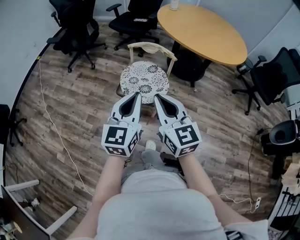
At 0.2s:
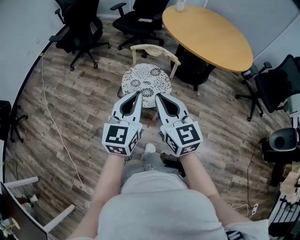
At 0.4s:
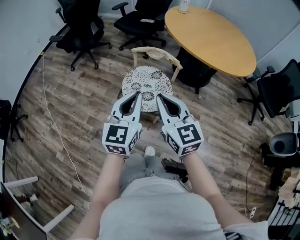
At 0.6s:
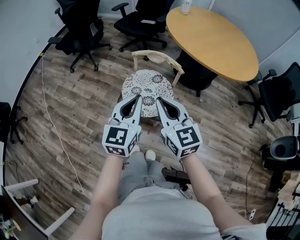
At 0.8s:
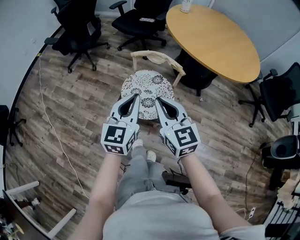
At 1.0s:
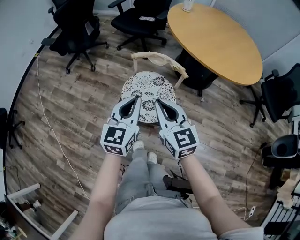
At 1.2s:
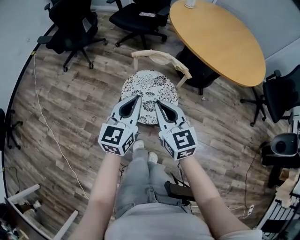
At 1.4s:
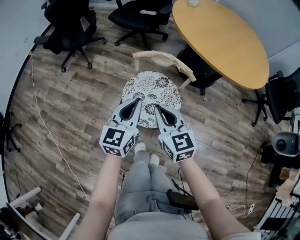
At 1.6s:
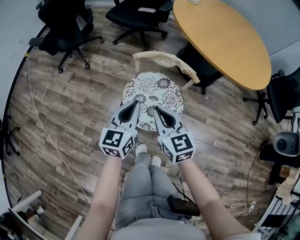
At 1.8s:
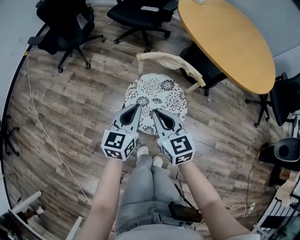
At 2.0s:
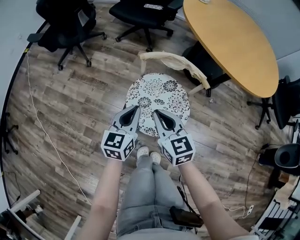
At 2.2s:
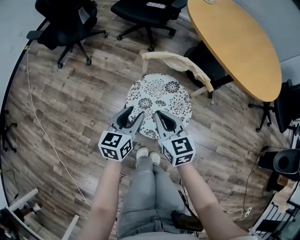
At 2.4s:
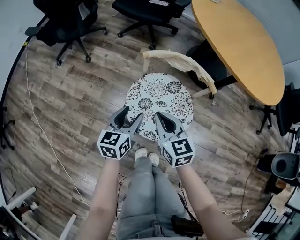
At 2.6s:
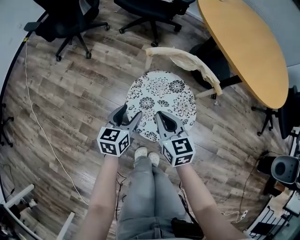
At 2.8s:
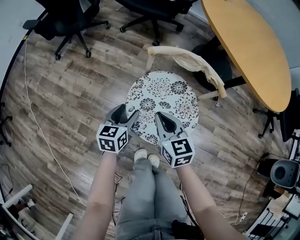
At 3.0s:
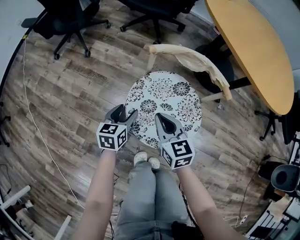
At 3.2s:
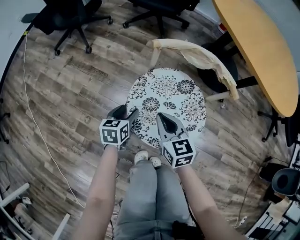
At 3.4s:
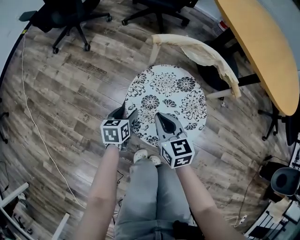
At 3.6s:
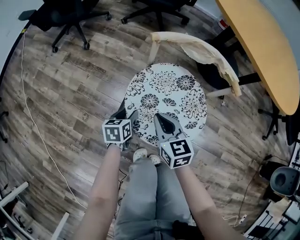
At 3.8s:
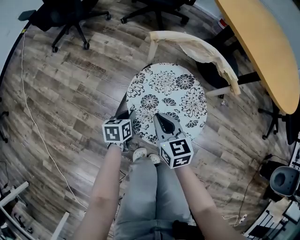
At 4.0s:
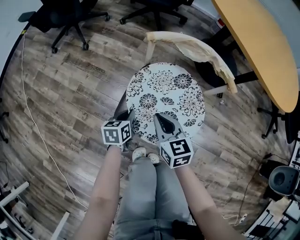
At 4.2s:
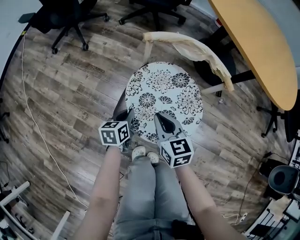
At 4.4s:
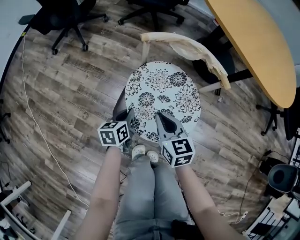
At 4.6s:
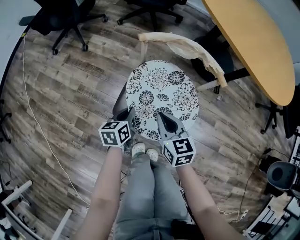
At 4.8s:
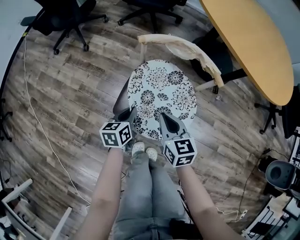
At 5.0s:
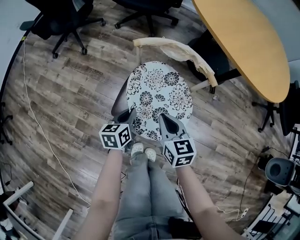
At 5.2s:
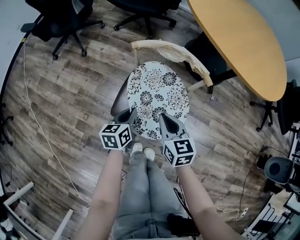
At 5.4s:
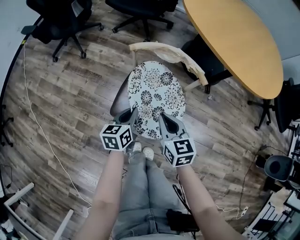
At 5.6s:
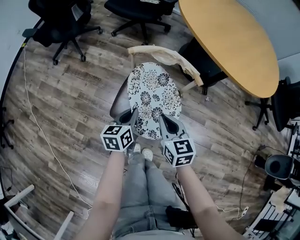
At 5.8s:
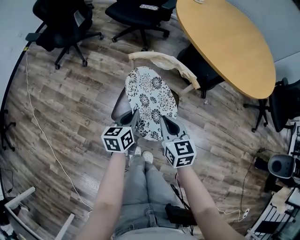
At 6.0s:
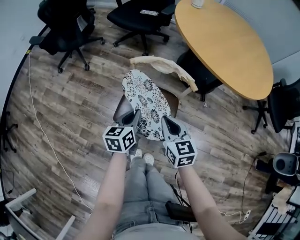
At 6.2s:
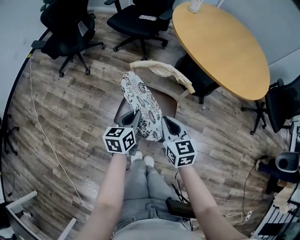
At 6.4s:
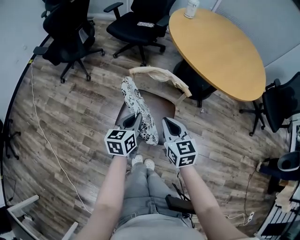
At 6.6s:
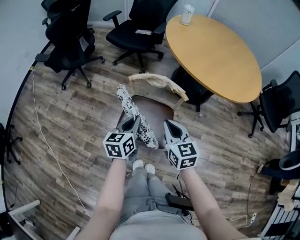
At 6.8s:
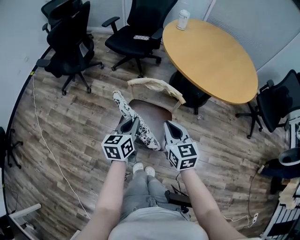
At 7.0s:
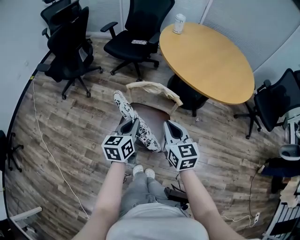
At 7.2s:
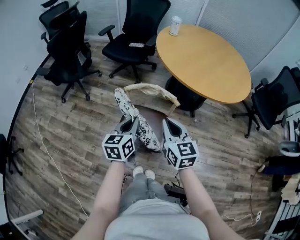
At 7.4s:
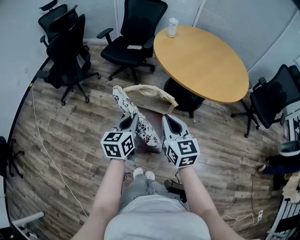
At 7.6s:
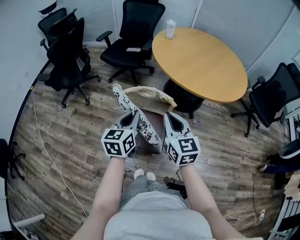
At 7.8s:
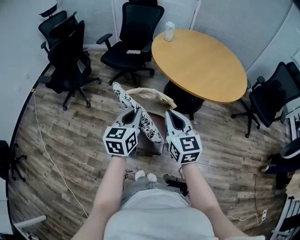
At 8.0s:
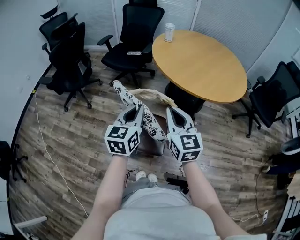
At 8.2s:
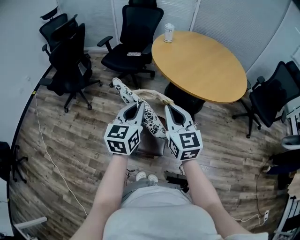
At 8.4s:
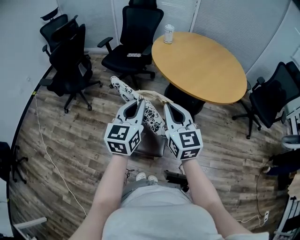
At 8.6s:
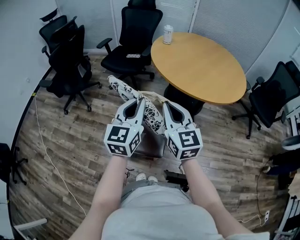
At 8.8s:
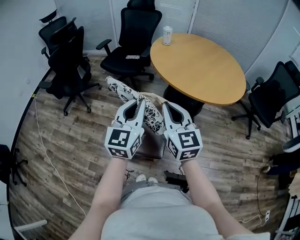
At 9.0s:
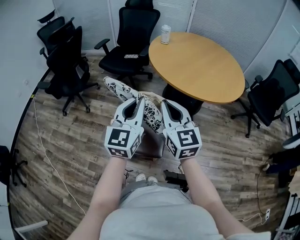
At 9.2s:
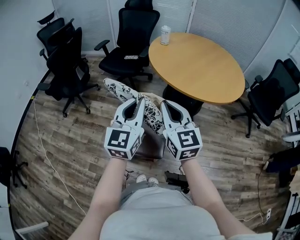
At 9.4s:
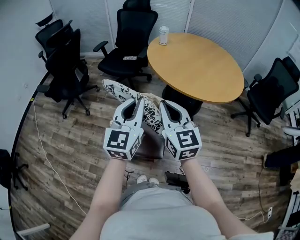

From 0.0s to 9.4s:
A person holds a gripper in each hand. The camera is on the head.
From 0.0s to 1.6s: The grippers both shift forward and downward by roughly 30 cm.
From 1.6s to 3.2s: Both grippers move downward, about 30 cm. The left gripper changes its angle by roughly 30 degrees, and opens.
From 3.2s to 4.8s: The left gripper moves upward and to the right, some 10 cm, and closes its fingers; the right gripper shifts about 5 cm to the right.
From 4.8s to 6.2s: The two grippers go roughly 20 cm upward.
From 6.2s to 7.8s: Both grippers move upward, approximately 20 cm.
From 7.8s to 9.4s: The right gripper shifts some 5 cm upward. Meanwhile the left gripper is displaced upward by about 10 cm, and turns by roughly 20 degrees.

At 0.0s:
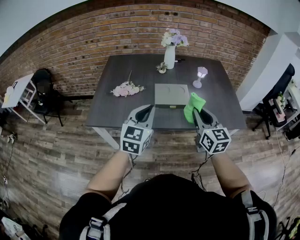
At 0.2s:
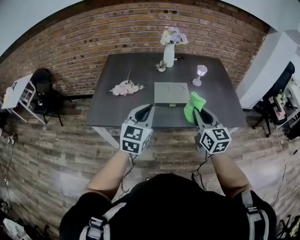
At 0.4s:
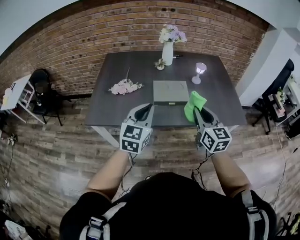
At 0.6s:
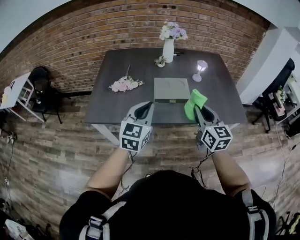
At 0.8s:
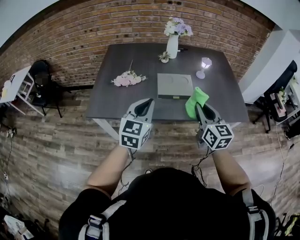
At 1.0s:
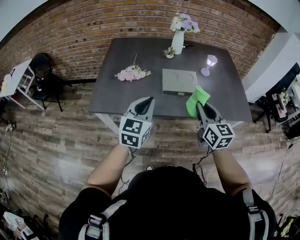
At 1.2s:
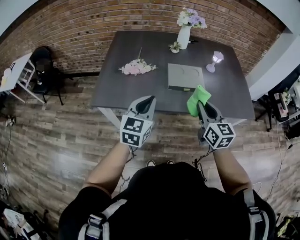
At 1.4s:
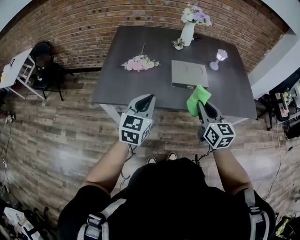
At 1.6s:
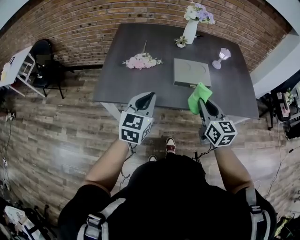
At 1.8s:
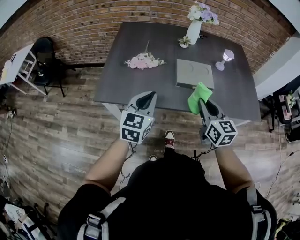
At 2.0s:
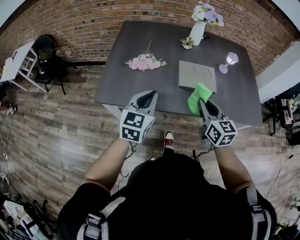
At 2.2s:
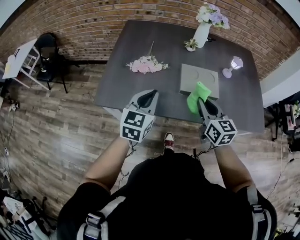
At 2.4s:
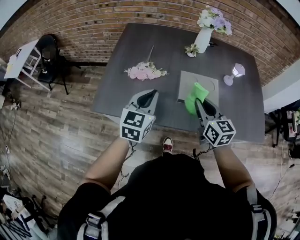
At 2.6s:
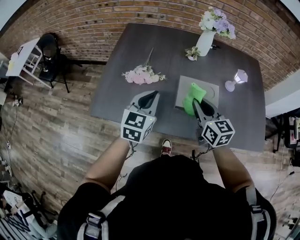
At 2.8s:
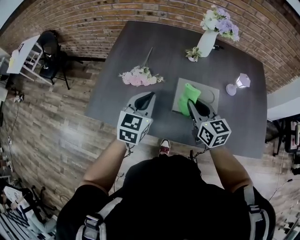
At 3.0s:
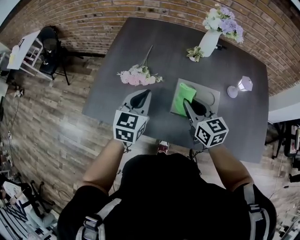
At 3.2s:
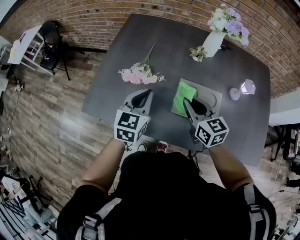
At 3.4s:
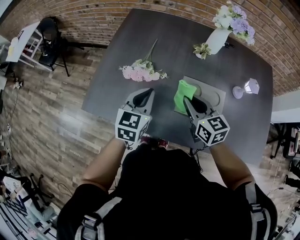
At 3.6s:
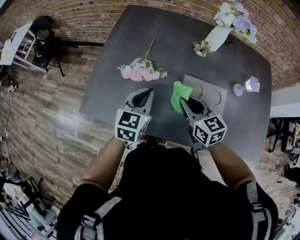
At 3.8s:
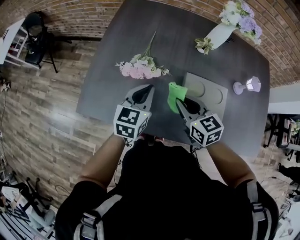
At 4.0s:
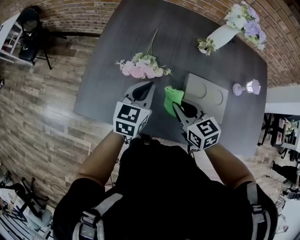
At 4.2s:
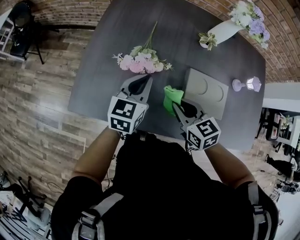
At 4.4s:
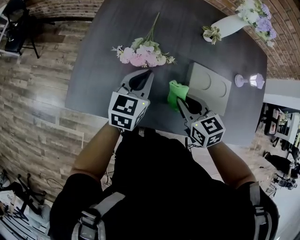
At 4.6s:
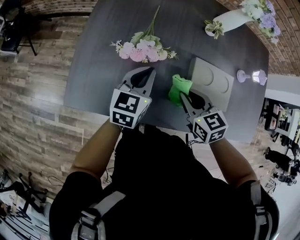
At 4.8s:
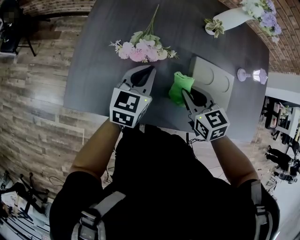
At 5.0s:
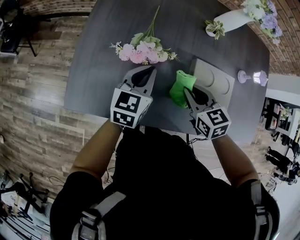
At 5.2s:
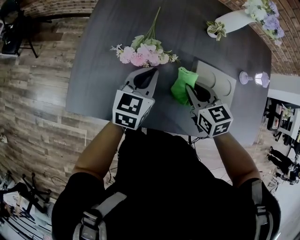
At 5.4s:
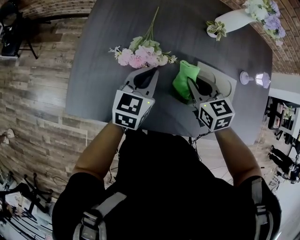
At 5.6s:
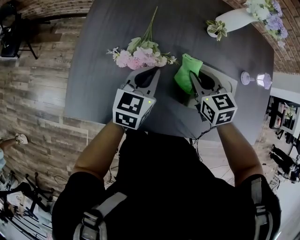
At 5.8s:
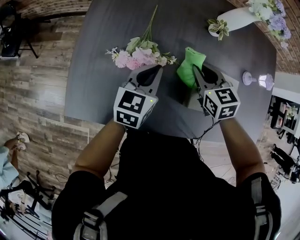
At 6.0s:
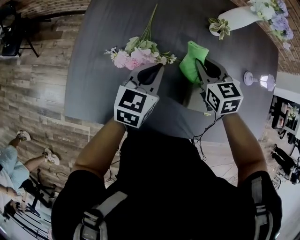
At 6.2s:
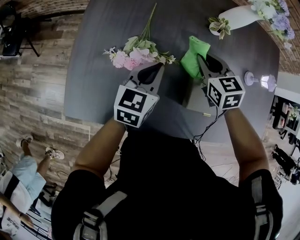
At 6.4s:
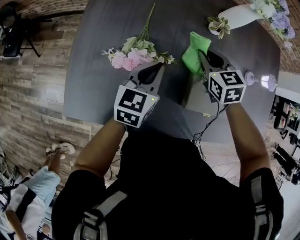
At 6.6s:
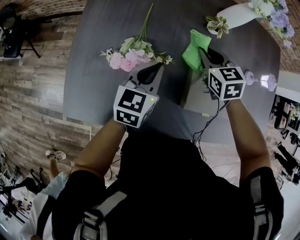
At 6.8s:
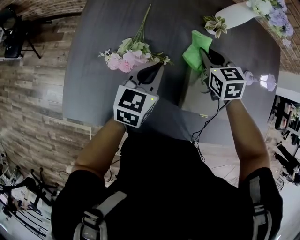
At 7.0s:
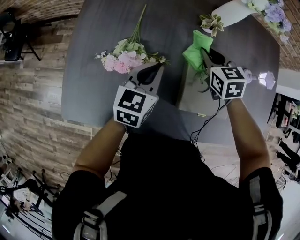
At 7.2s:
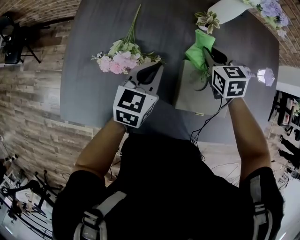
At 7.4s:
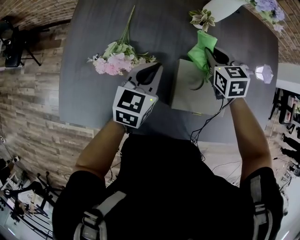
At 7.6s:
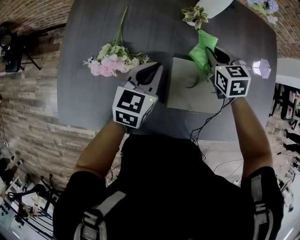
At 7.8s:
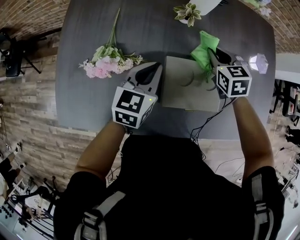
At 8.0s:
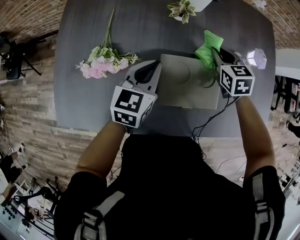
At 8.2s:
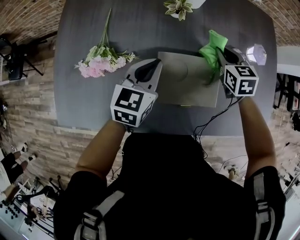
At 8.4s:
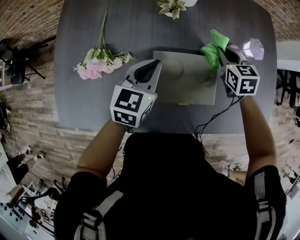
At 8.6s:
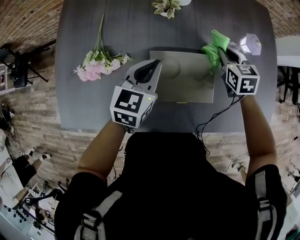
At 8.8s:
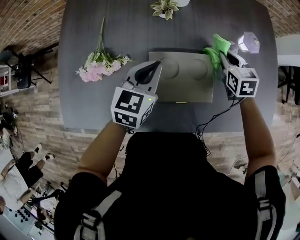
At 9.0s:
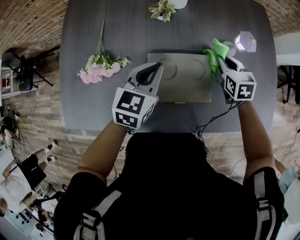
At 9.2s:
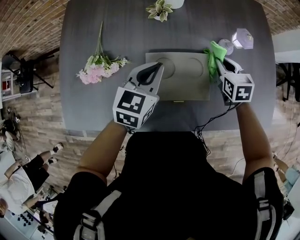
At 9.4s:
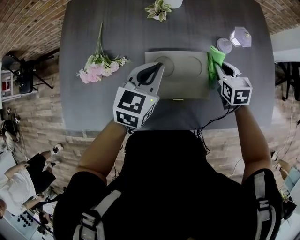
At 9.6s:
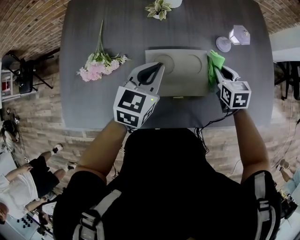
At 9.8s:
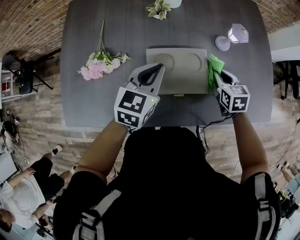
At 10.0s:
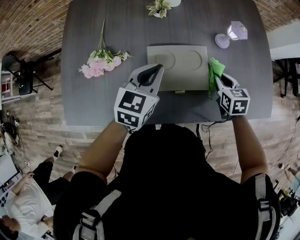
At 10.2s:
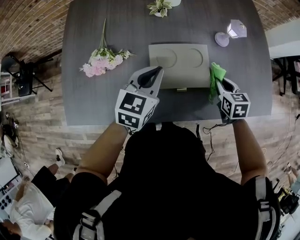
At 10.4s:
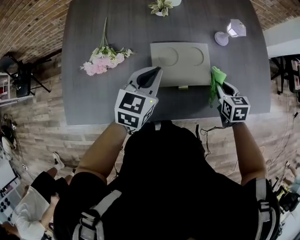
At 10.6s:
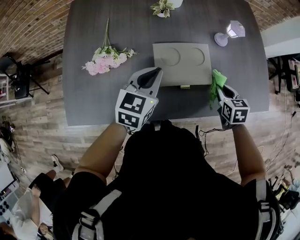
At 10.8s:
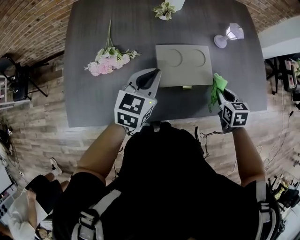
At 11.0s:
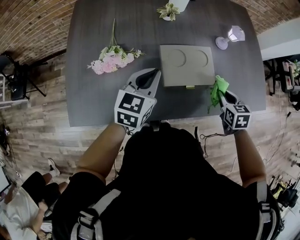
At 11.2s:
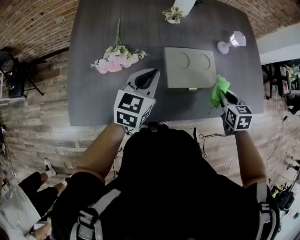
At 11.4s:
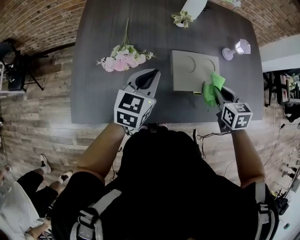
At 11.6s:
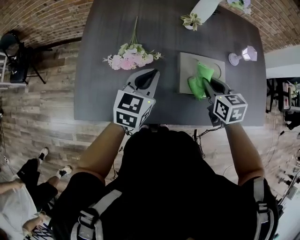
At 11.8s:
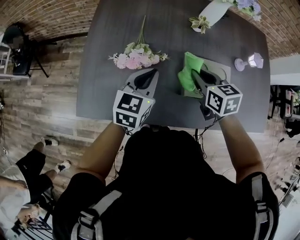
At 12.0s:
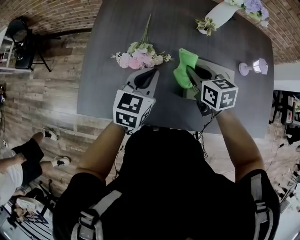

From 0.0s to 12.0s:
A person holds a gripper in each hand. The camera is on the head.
From 0.0s to 1.6s: The grippers both shift to the left and downward by approximately 10 cm.
From 1.6s to 3.0s: The grippers both shift forward by some 20 cm. The right gripper rotates roughly 20 degrees.
From 3.0s to 4.4s: The left gripper is displaced downward, forward and to the left by approximately 15 cm; the right gripper shifts approximately 15 cm to the left and downward, and swivels some 20 degrees.
From 4.4s to 6.0s: The right gripper goes roughly 15 cm forward; the left gripper ends up roughly 5 cm from where it was.
From 6.0s to 7.6s: The right gripper heads to the right and forward, covering roughly 15 cm, while the left gripper shifts roughly 10 cm to the right.
From 7.6s to 9.0s: The left gripper heads to the right, covering some 10 cm, while the right gripper heads to the right, covering roughly 15 cm.
From 9.0s to 10.4s: The right gripper travels backward by approximately 15 cm, while the left gripper goes some 5 cm backward.
From 10.4s to 12.0s: The right gripper ends up about 35 cm from where it was, and turns by approximately 30 degrees. Meanwhile the left gripper shifts by some 15 cm.

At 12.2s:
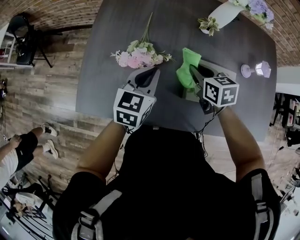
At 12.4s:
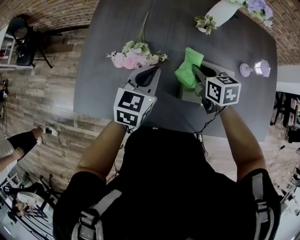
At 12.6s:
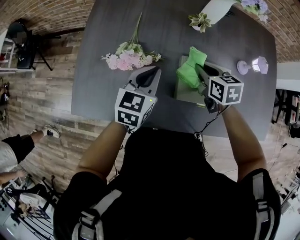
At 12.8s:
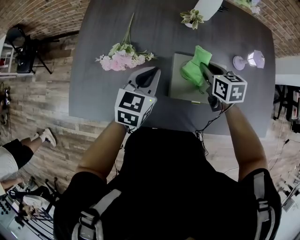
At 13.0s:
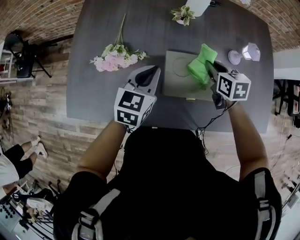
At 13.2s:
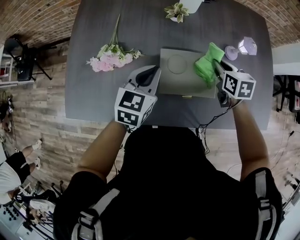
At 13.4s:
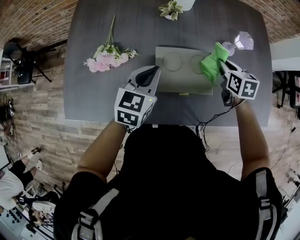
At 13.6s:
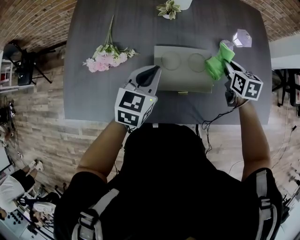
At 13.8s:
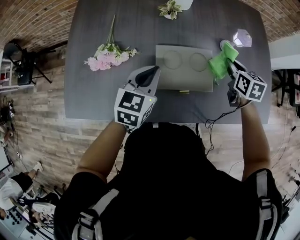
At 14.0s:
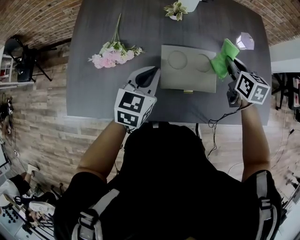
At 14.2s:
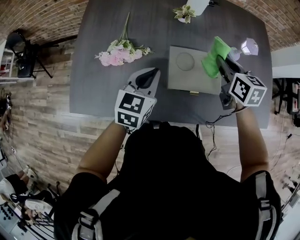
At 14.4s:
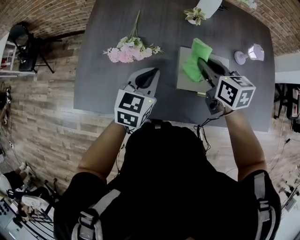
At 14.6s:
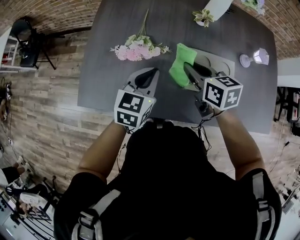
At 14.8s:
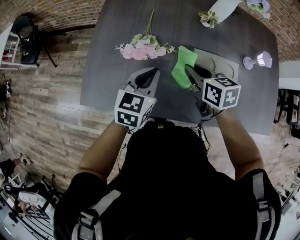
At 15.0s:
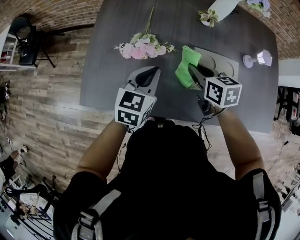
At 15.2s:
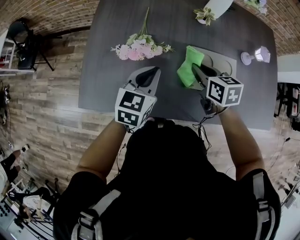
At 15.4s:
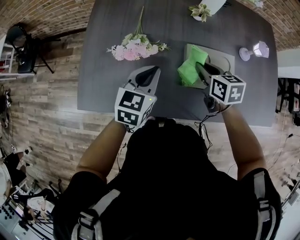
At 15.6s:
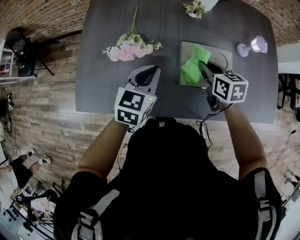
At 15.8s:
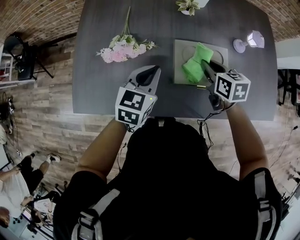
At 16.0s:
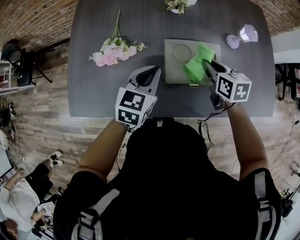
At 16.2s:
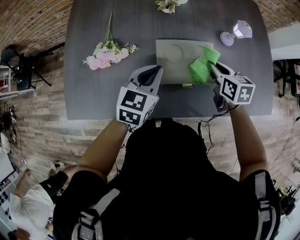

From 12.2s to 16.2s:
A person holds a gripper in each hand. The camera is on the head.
From 12.2s to 13.6s: The right gripper moves to the right, approximately 30 cm, and turns by some 20 degrees; the left gripper is displaced to the right by roughly 15 cm.
From 13.6s to 14.8s: The left gripper travels to the left by about 15 cm, while the right gripper goes roughly 35 cm to the left, and swivels approximately 30 degrees.
From 14.8s to 16.2s: The left gripper shifts some 15 cm to the right. The right gripper is displaced to the right by roughly 25 cm, and changes its angle by some 20 degrees.
